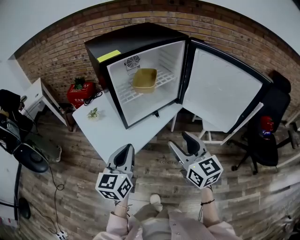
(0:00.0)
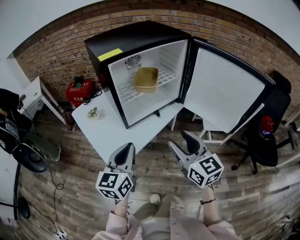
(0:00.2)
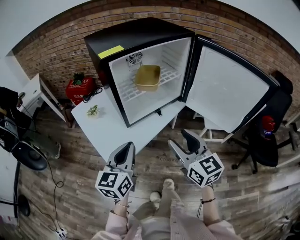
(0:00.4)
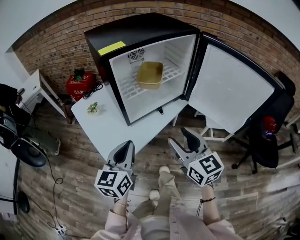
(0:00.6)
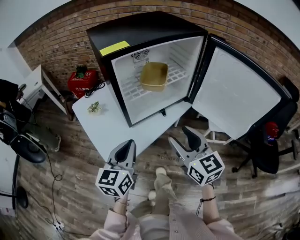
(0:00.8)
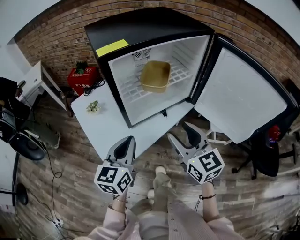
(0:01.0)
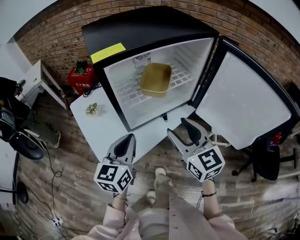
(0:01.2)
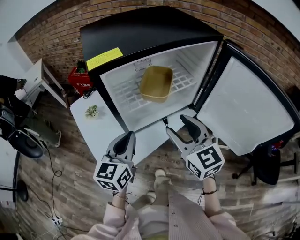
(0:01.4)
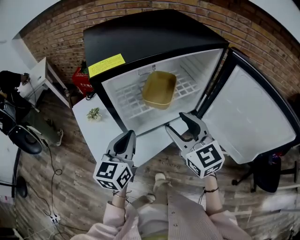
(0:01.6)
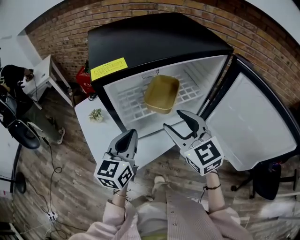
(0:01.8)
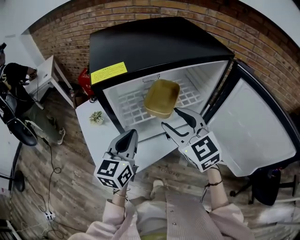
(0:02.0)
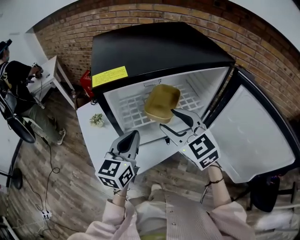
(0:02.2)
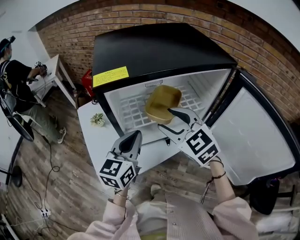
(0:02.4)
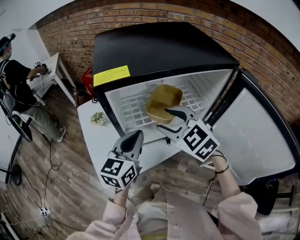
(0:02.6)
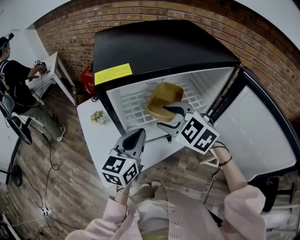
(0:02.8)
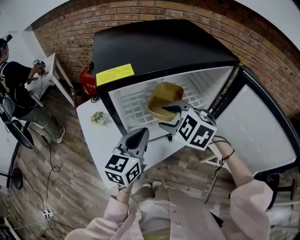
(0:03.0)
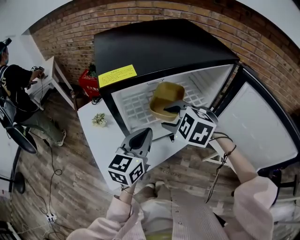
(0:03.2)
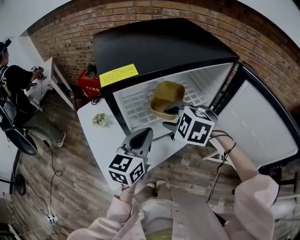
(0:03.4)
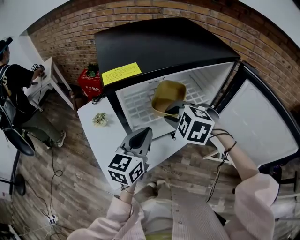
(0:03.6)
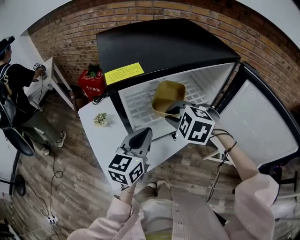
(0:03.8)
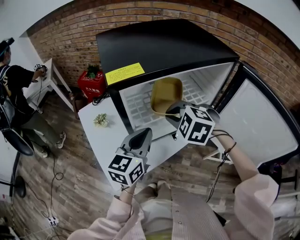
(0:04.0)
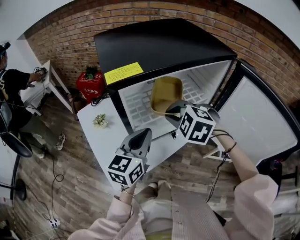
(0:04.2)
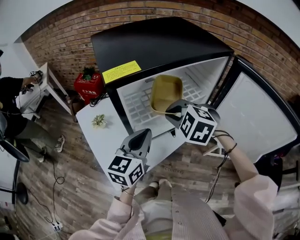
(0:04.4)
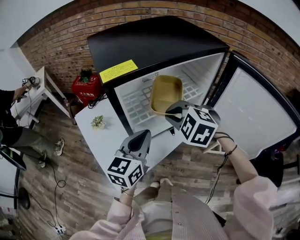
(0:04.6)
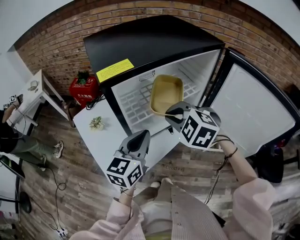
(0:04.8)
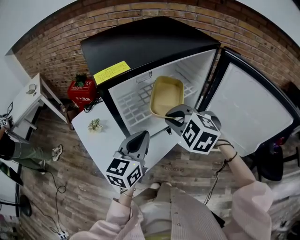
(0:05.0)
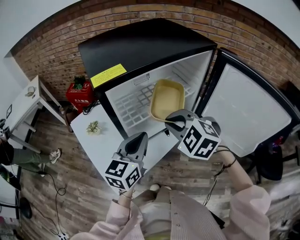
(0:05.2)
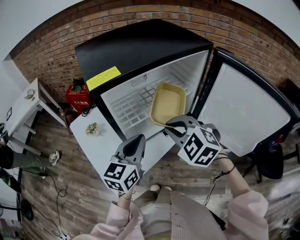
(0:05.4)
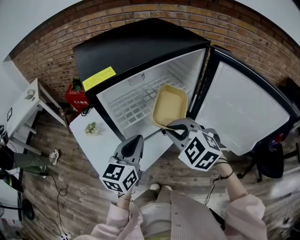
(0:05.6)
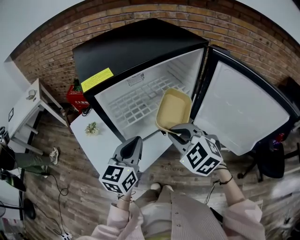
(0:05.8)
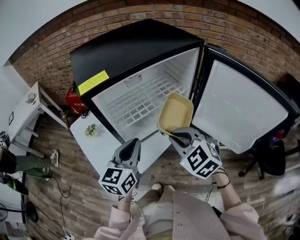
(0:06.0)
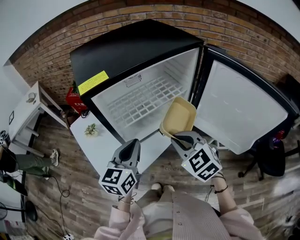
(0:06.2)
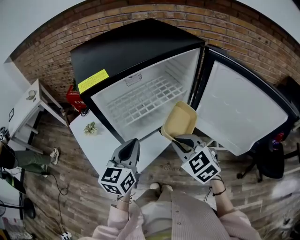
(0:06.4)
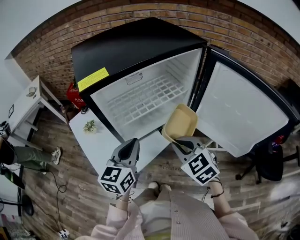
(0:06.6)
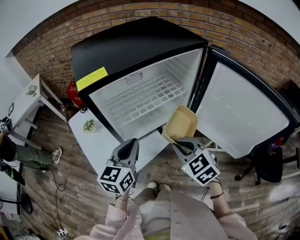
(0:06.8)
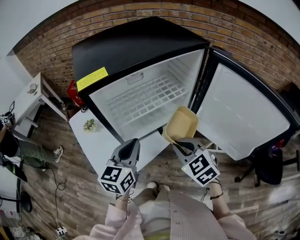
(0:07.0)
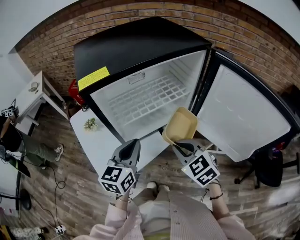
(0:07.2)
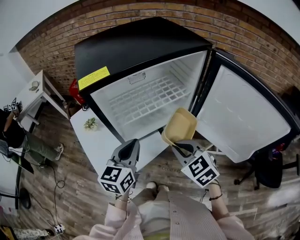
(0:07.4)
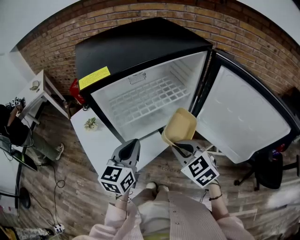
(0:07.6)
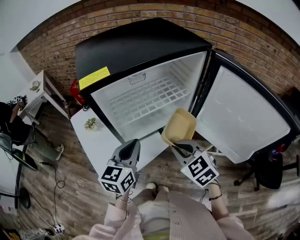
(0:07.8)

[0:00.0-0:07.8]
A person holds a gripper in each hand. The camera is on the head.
0:00.0 to 0:01.6: The grippers both shift forward by roughly 20 cm.
0:01.6 to 0:03.2: The left gripper moves about 5 cm. The right gripper goes approximately 10 cm forward, and tilts its fingers some 40 degrees downward.
0:03.2 to 0:04.6: The right gripper closes.
0:04.6 to 0:06.2: The right gripper moves backward and to the right, some 10 cm, and rotates some 30 degrees.
0:06.2 to 0:07.8: There are only small adjustments of the grippers.

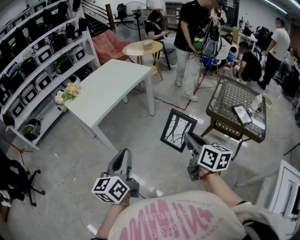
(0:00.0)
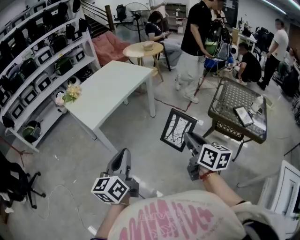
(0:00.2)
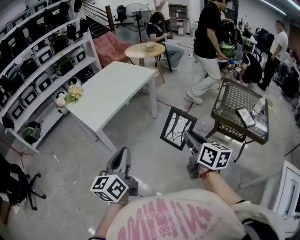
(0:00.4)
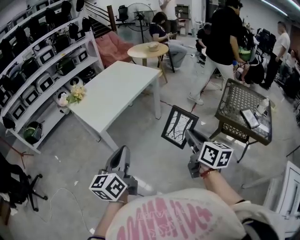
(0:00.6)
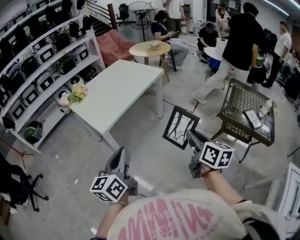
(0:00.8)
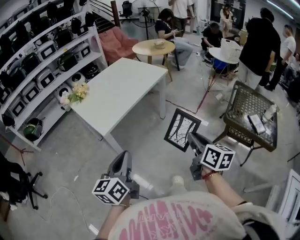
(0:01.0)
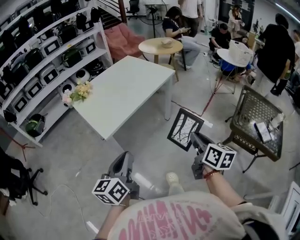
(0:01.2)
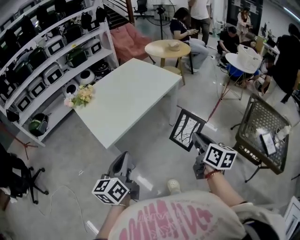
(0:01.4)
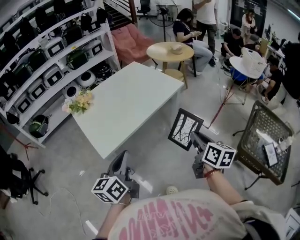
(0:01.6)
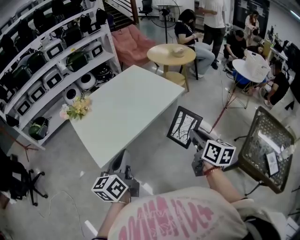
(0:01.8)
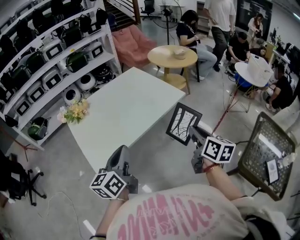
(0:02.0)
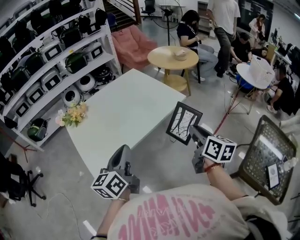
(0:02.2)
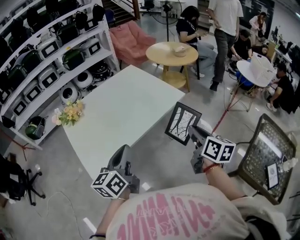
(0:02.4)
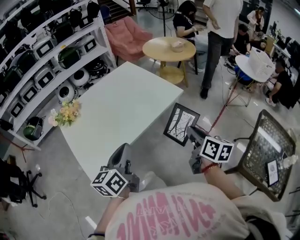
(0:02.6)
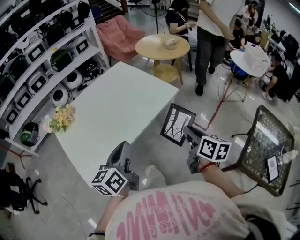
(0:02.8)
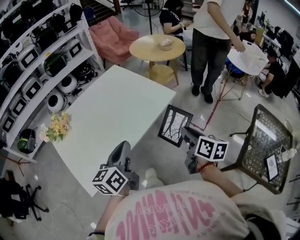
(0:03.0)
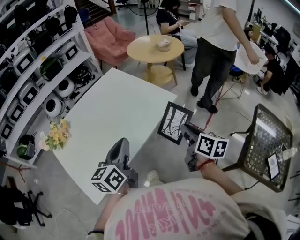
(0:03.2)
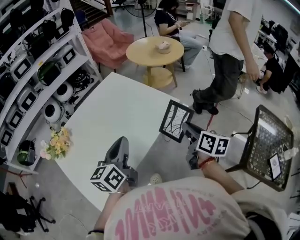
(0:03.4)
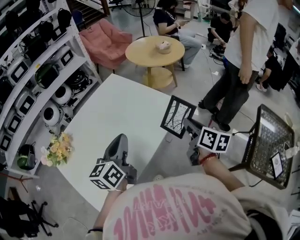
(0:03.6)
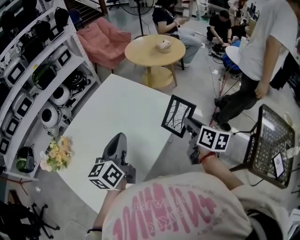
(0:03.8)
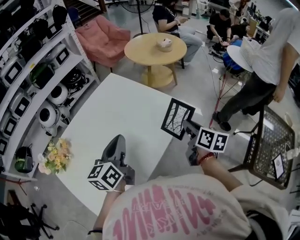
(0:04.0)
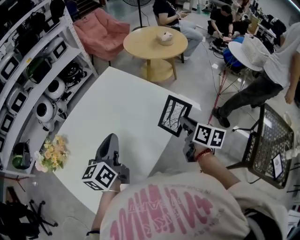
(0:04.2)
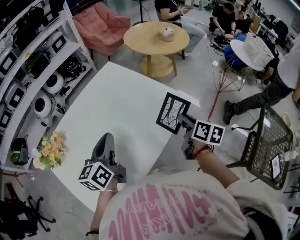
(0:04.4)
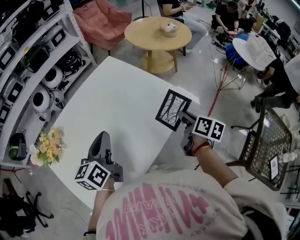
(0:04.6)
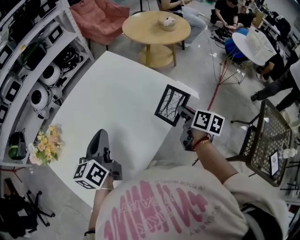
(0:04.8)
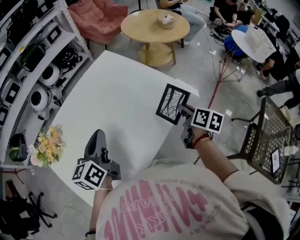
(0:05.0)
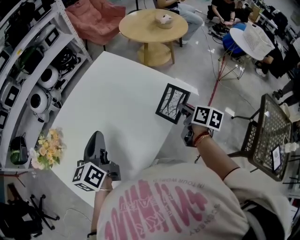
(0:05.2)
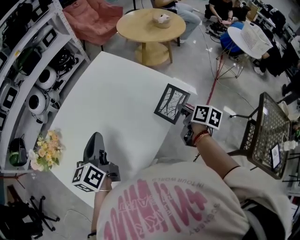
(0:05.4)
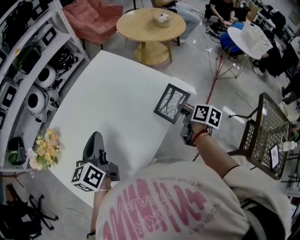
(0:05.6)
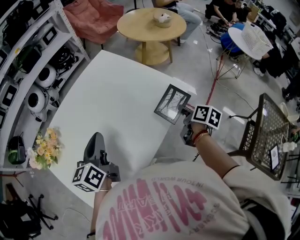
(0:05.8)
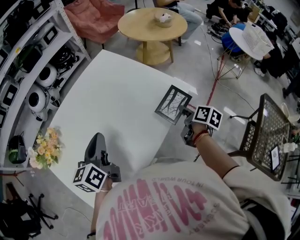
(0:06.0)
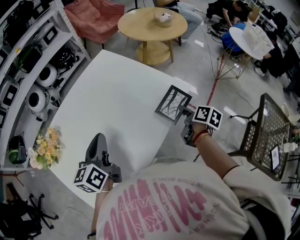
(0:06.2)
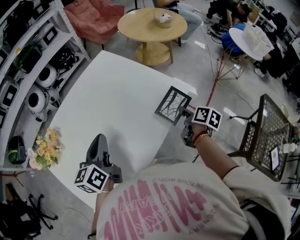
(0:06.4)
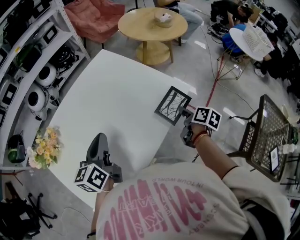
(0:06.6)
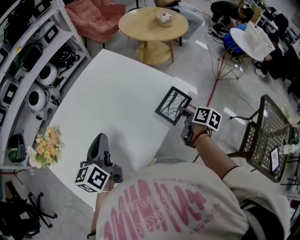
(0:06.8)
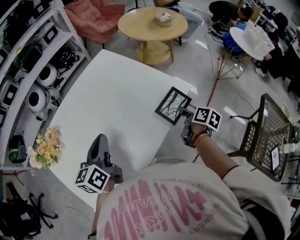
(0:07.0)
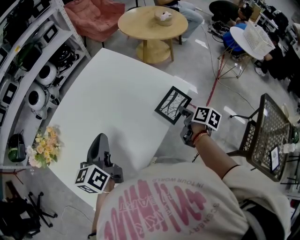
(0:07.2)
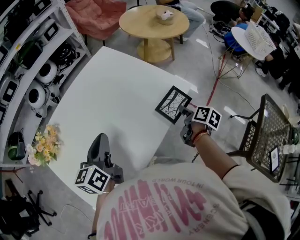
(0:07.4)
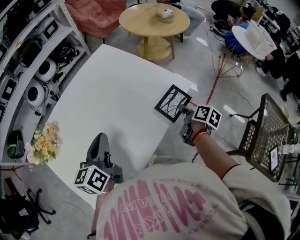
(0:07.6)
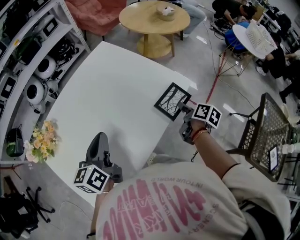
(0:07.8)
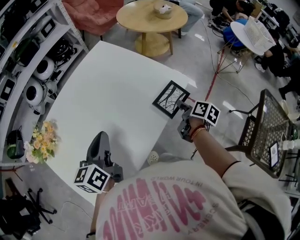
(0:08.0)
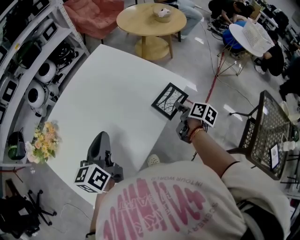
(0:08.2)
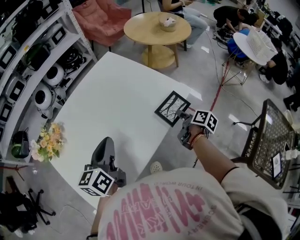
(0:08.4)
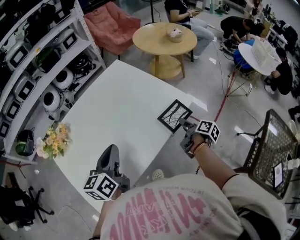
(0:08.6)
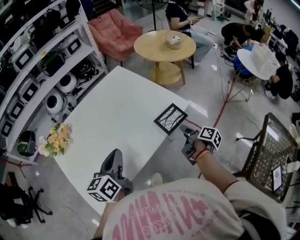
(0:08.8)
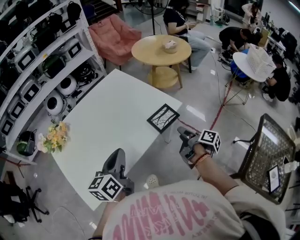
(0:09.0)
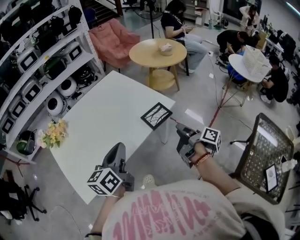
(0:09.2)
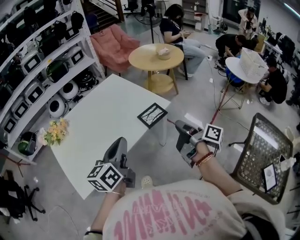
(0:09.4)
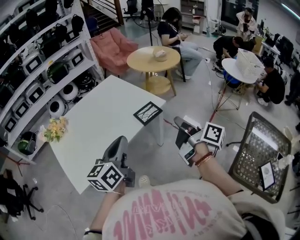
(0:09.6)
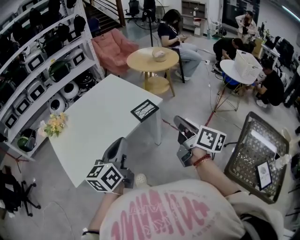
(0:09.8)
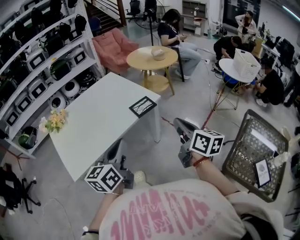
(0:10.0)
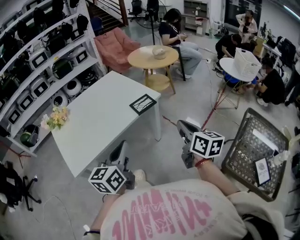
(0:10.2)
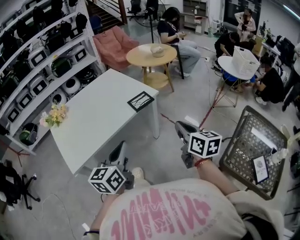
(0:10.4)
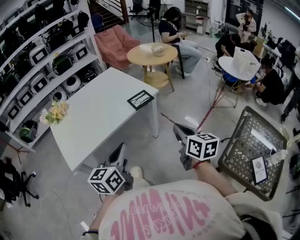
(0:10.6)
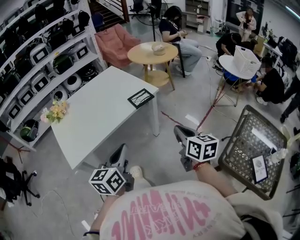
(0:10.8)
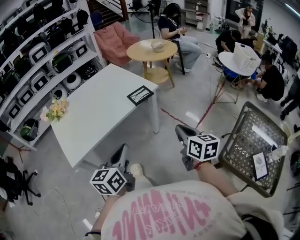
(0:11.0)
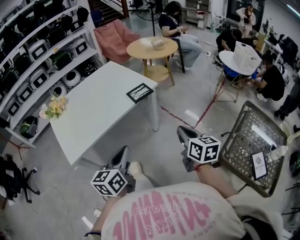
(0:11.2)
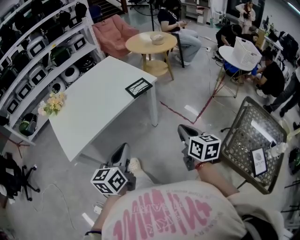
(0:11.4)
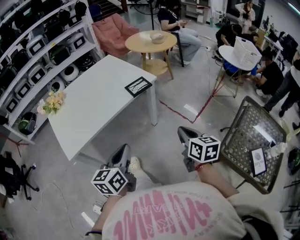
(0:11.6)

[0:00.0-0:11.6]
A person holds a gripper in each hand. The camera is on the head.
0:00.0 to 0:01.4: The right gripper shifts approximately 25 cm forward. Meanwhile the left gripper goes some 25 cm forward and to the left.
0:01.4 to 0:02.8: Both grippers move forward, about 30 cm.
0:02.8 to 0:04.4: The left gripper goes roughly 25 cm forward and to the left. The right gripper goes about 20 cm forward.
0:04.4 to 0:05.8: The right gripper moves downward, some 5 cm.
0:05.8 to 0:07.2: There are only small adjustments of the grippers.
0:07.2 to 0:08.8: The right gripper heads backward, covering roughly 5 cm, turns by approximately 20 degrees, and opens; the left gripper travels backward and to the right by some 10 cm.
0:08.8 to 0:10.2: The right gripper heads backward, upward and to the right, covering approximately 30 cm, twists about 50 degrees counterclockwise, seen from behind, and closes its fingers. The left gripper travels backward and to the right by roughly 30 cm.
0:10.2 to 0:11.6: The left gripper moves backward and downward, some 10 cm. Meanwhile the right gripper heads downward and backward, covering roughly 10 cm.

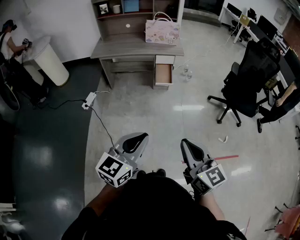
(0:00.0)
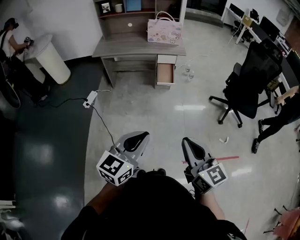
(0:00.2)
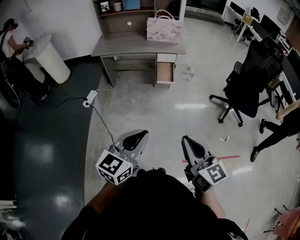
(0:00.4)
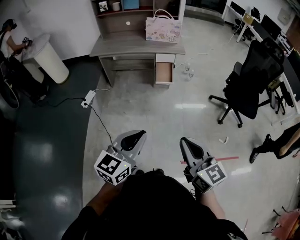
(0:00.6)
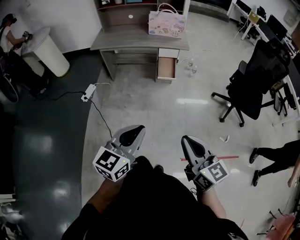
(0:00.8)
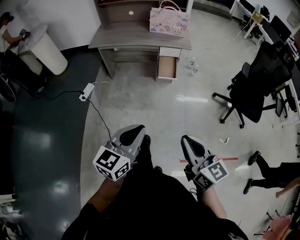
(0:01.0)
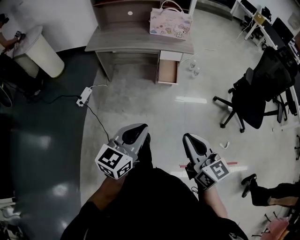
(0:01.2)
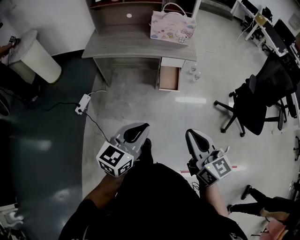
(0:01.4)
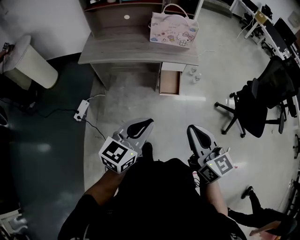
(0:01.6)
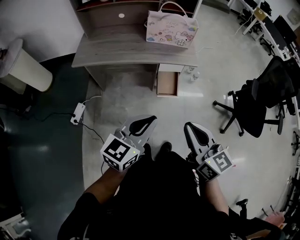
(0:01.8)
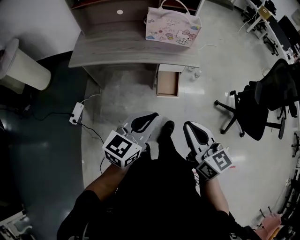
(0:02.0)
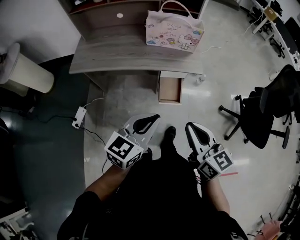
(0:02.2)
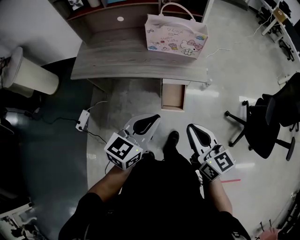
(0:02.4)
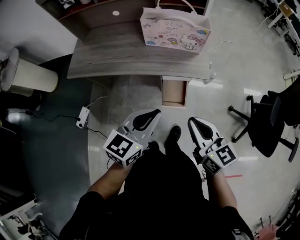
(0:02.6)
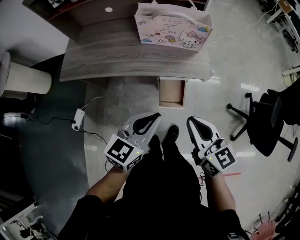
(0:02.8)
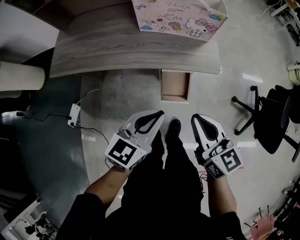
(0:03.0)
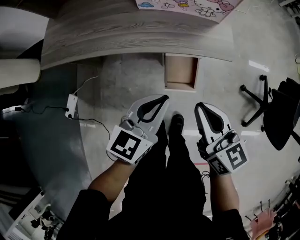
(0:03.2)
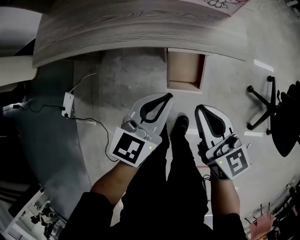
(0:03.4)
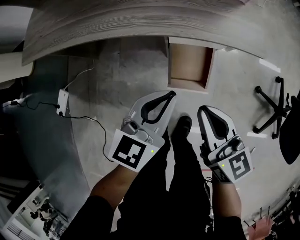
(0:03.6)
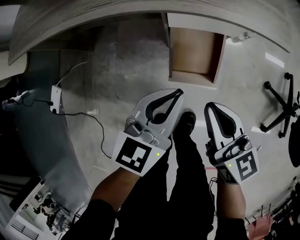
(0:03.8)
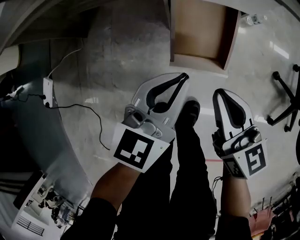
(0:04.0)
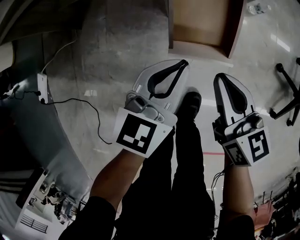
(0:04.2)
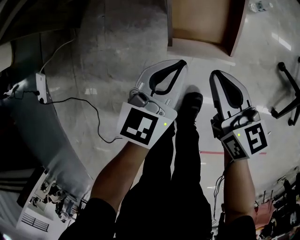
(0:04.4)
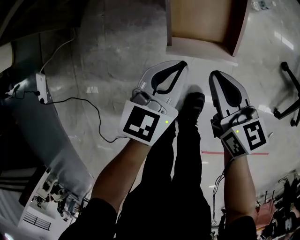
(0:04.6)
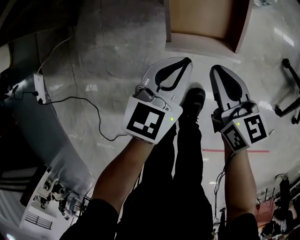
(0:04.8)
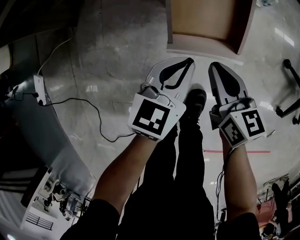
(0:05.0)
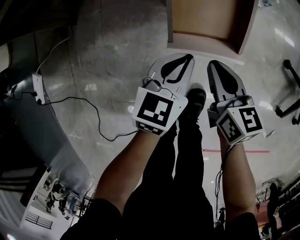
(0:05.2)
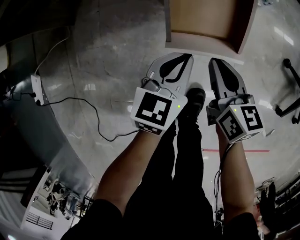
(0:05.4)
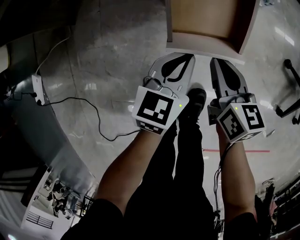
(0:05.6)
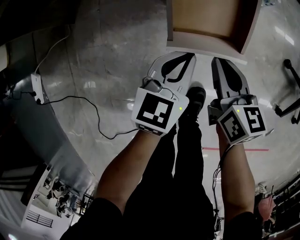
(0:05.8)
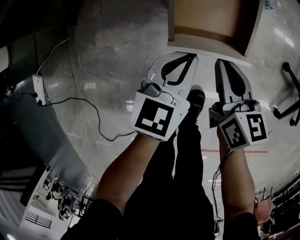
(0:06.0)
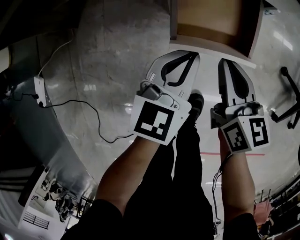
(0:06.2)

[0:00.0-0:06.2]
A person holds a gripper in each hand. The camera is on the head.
0:00.0 to 0:01.6: The two grippers go some 40 cm forward.
0:01.6 to 0:03.2: The grippers both shift forward and downward by some 40 cm.
0:03.2 to 0:04.6: Both grippers move downward, roughly 40 cm.
0:04.6 to 0:06.2: Both grippers travel together forward, approximately 5 cm.
